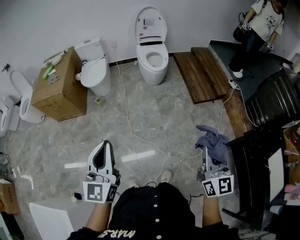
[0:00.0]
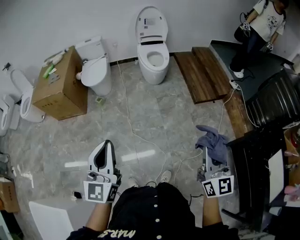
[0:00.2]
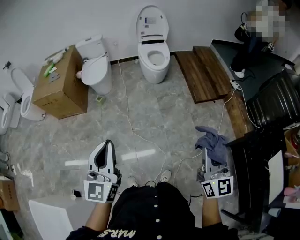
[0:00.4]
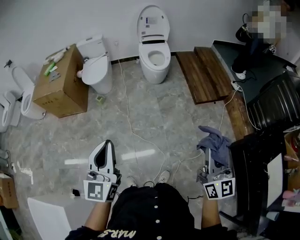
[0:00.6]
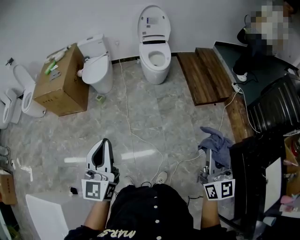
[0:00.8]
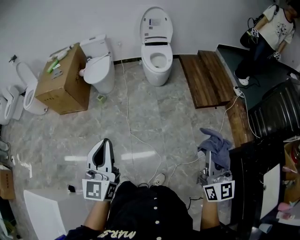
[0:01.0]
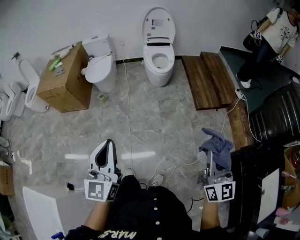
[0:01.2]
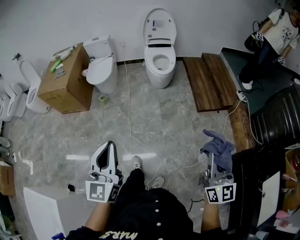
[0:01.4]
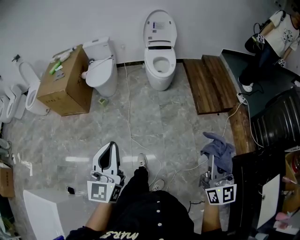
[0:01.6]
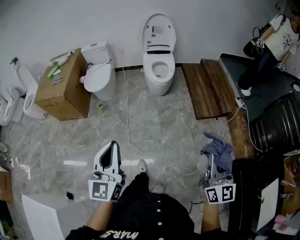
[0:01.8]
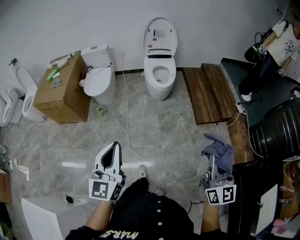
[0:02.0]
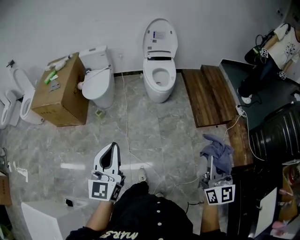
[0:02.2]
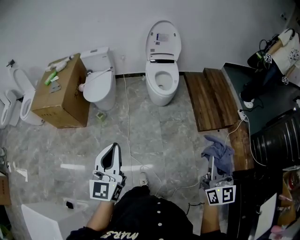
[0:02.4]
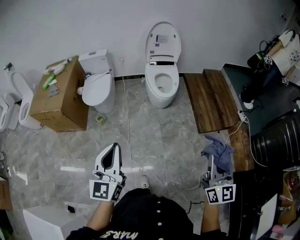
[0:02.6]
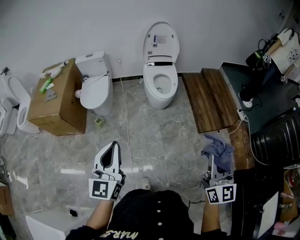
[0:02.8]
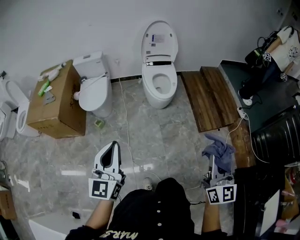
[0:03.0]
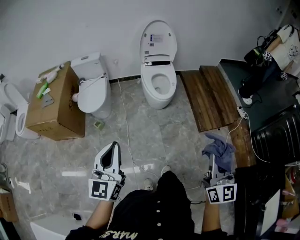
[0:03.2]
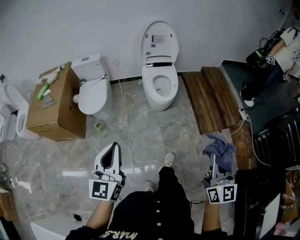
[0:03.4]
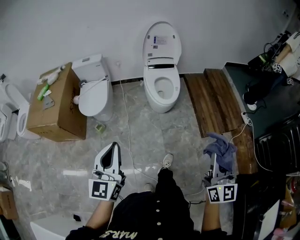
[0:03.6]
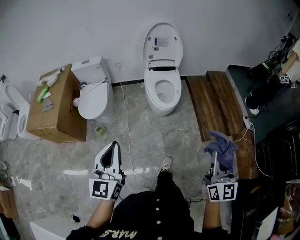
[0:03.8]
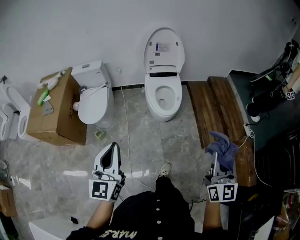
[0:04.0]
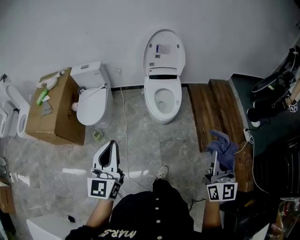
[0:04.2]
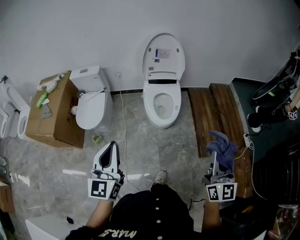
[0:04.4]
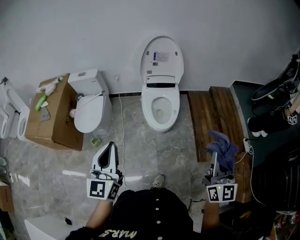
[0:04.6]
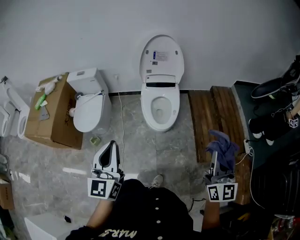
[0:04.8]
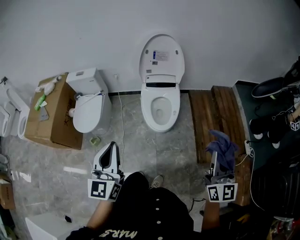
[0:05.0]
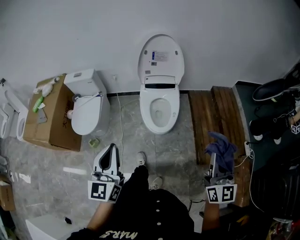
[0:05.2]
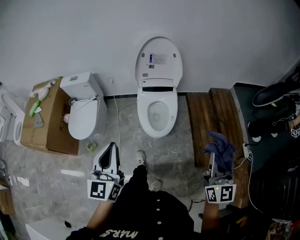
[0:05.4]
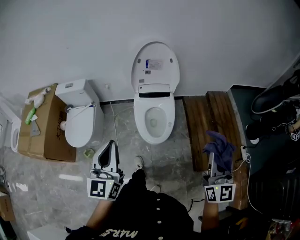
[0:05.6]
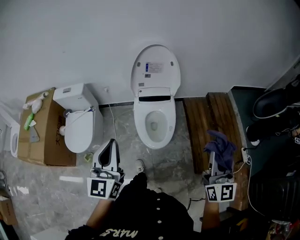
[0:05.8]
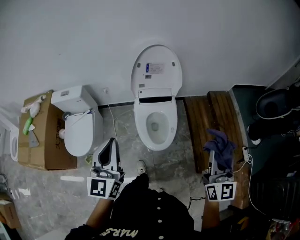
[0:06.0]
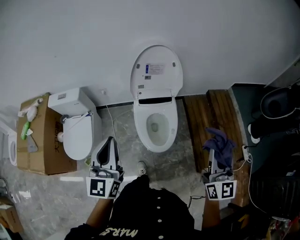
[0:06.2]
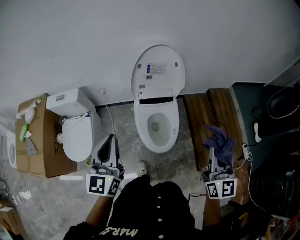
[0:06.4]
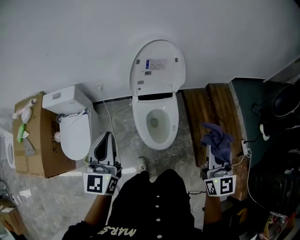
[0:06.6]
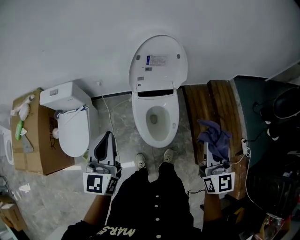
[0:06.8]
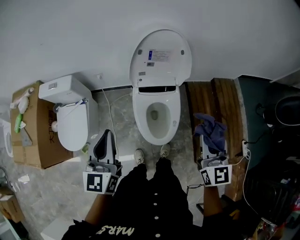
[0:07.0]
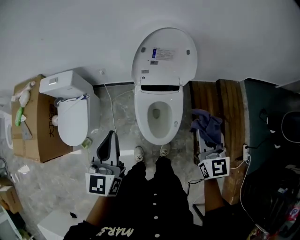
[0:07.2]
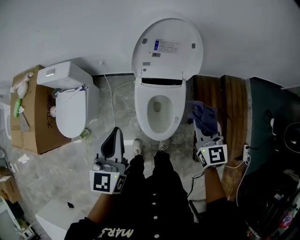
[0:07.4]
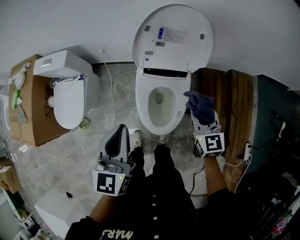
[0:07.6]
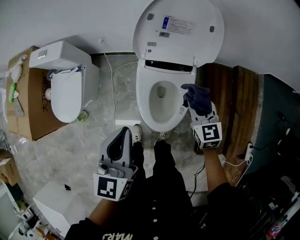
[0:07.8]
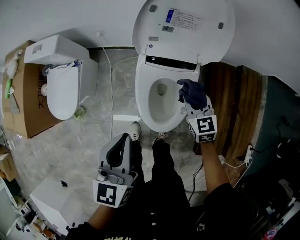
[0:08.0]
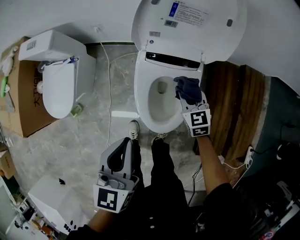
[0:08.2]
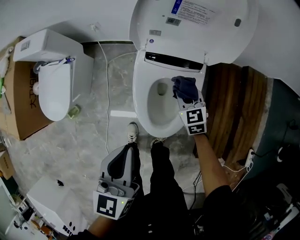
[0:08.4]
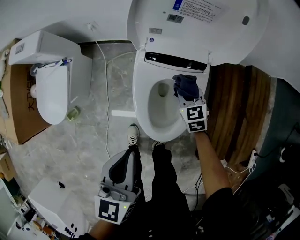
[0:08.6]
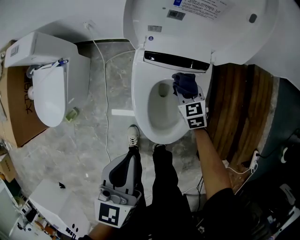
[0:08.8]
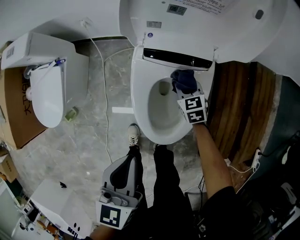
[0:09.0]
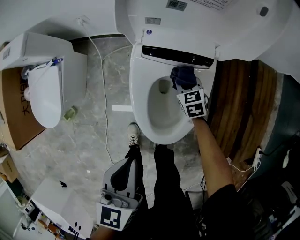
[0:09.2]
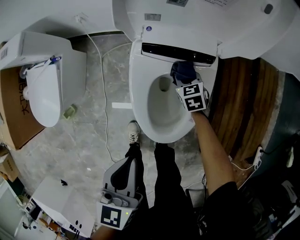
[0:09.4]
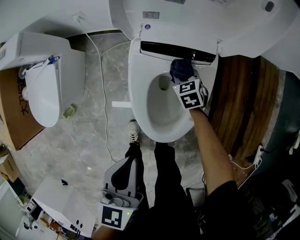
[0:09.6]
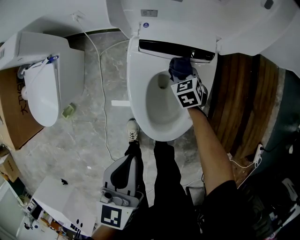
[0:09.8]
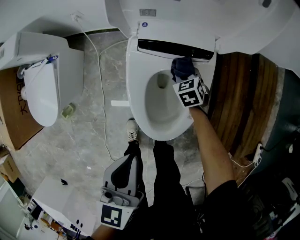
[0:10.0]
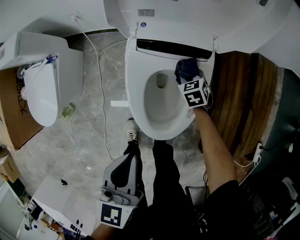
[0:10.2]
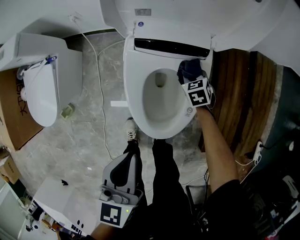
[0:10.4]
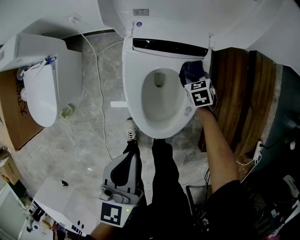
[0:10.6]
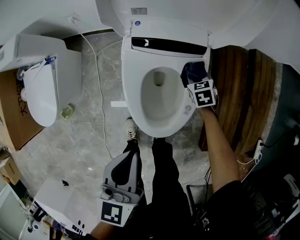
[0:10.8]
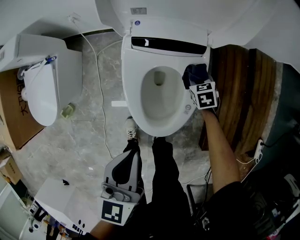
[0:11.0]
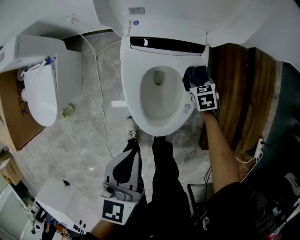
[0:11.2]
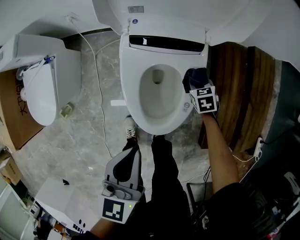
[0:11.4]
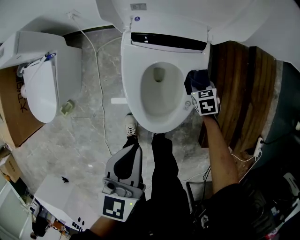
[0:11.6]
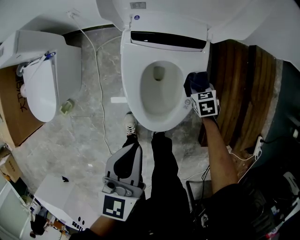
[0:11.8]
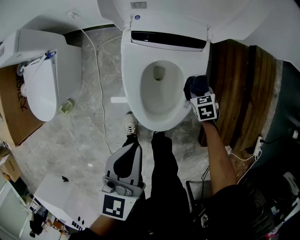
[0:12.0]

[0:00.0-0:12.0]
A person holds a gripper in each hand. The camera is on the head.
0:00.0 to 0:01.6: Both grippers travel together to the right and forward, approximately 10 cm.
0:01.6 to 0:03.0: The grippers both shift forward and to the left by approximately 25 cm.
0:03.0 to 0:04.4: The two grippers go about 30 cm forward.
0:04.4 to 0:06.0: Both grippers travel together forward, roughly 30 cm.
0:06.0 to 0:07.6: The right gripper heads forward and downward, covering roughly 40 cm, and swivels some 40 degrees, while the left gripper shifts about 20 cm forward and downward.
0:07.6 to 0:09.0: The right gripper is displaced downward by approximately 40 cm, and swivels about 30 degrees. The left gripper travels downward by roughly 20 cm.
0:09.0 to 0:10.4: The right gripper travels to the right and downward by roughly 10 cm.
0:10.4 to 0:12.0: The right gripper is displaced backward and to the right by approximately 10 cm.

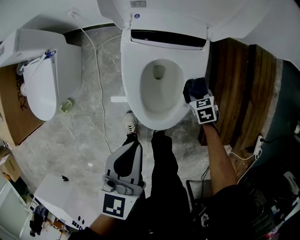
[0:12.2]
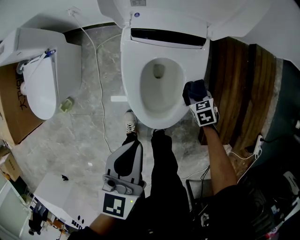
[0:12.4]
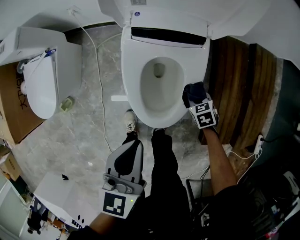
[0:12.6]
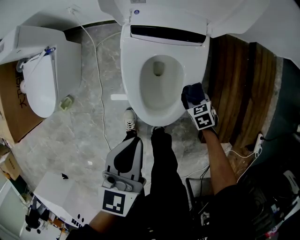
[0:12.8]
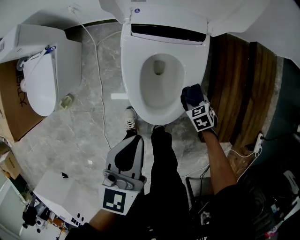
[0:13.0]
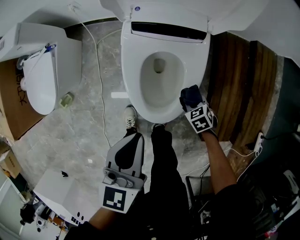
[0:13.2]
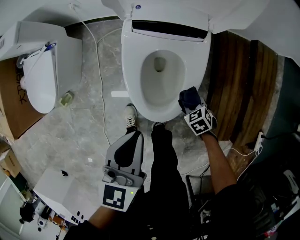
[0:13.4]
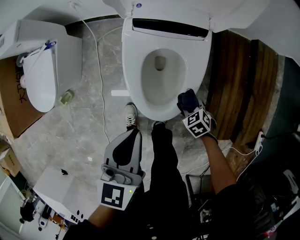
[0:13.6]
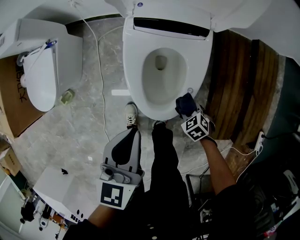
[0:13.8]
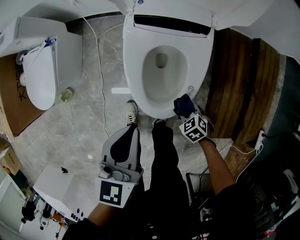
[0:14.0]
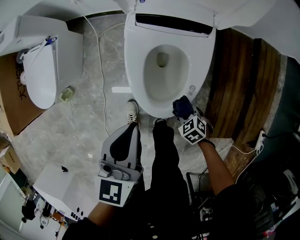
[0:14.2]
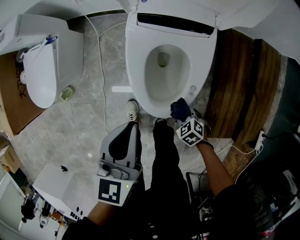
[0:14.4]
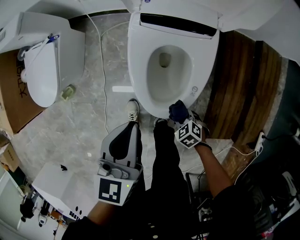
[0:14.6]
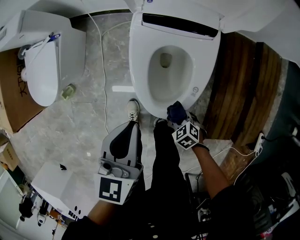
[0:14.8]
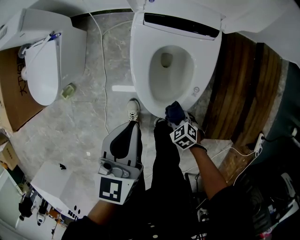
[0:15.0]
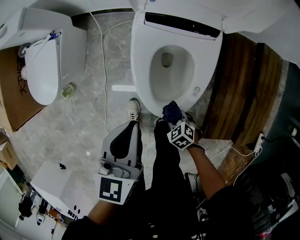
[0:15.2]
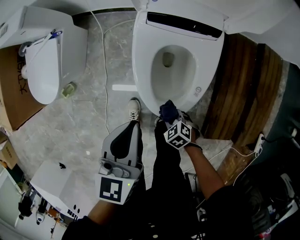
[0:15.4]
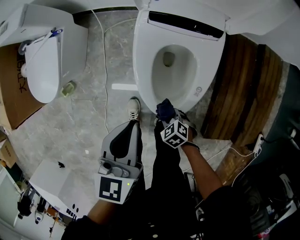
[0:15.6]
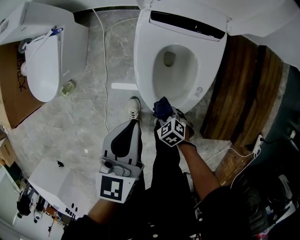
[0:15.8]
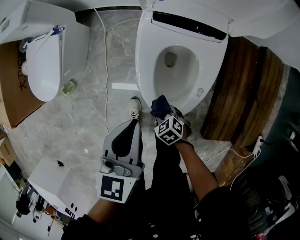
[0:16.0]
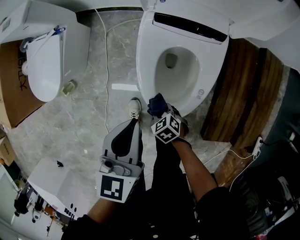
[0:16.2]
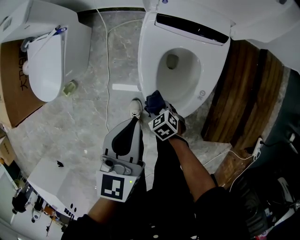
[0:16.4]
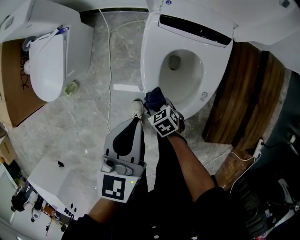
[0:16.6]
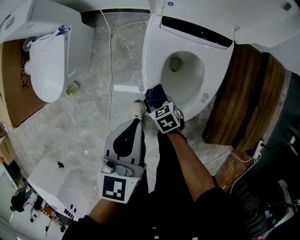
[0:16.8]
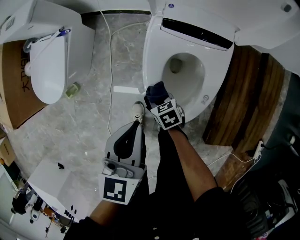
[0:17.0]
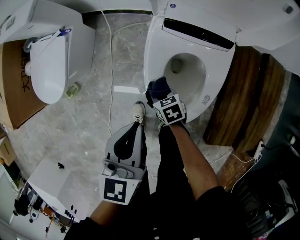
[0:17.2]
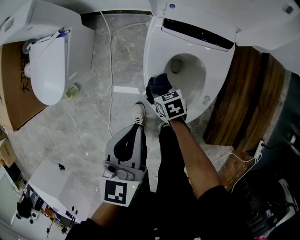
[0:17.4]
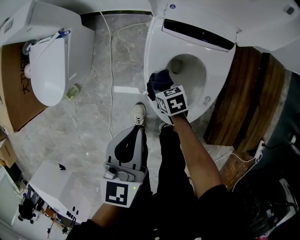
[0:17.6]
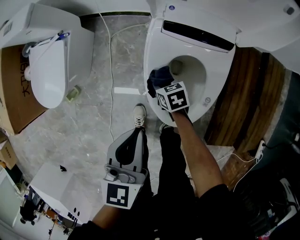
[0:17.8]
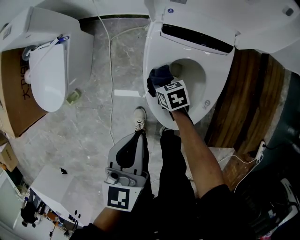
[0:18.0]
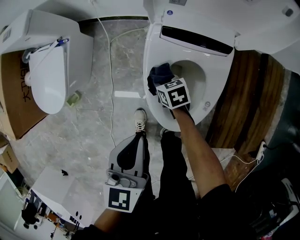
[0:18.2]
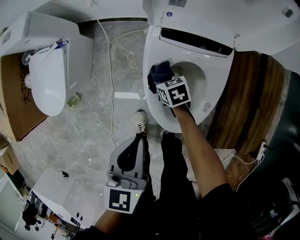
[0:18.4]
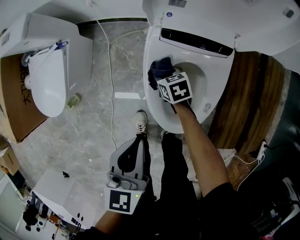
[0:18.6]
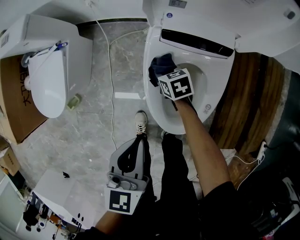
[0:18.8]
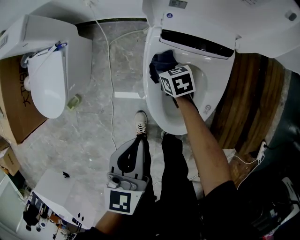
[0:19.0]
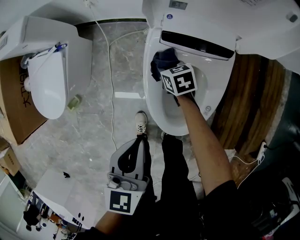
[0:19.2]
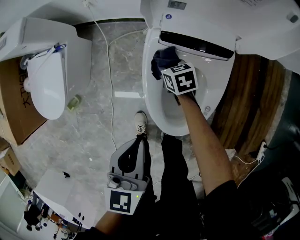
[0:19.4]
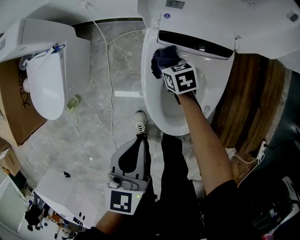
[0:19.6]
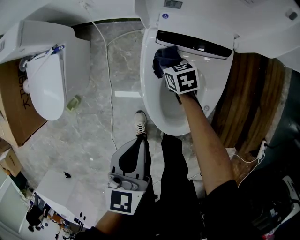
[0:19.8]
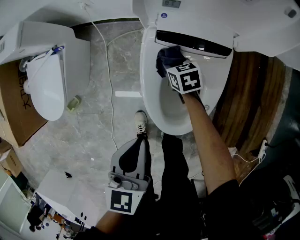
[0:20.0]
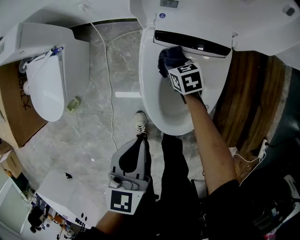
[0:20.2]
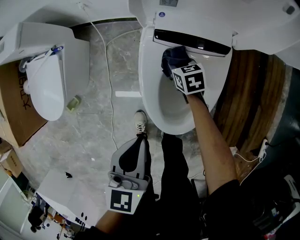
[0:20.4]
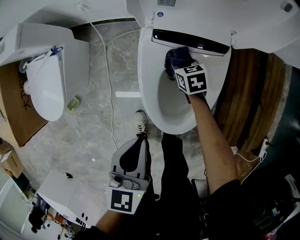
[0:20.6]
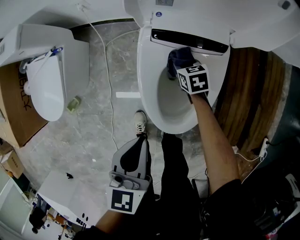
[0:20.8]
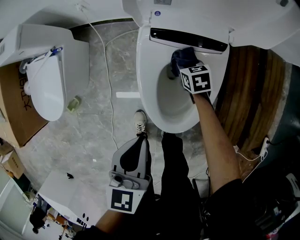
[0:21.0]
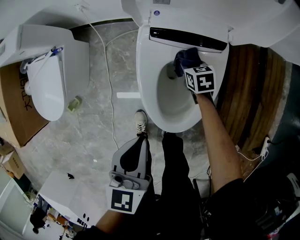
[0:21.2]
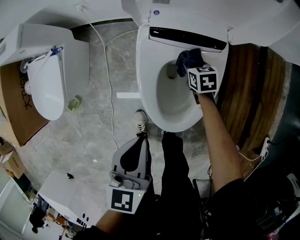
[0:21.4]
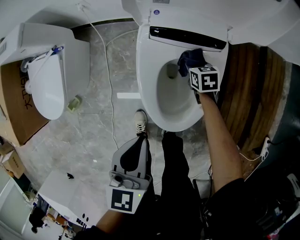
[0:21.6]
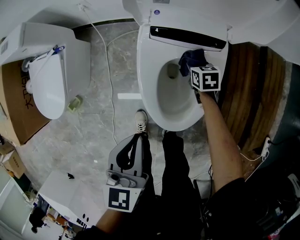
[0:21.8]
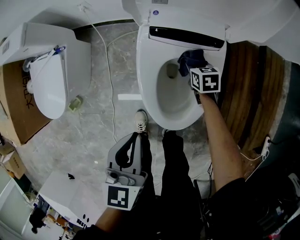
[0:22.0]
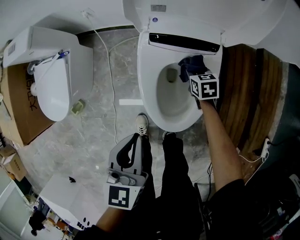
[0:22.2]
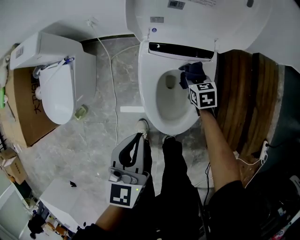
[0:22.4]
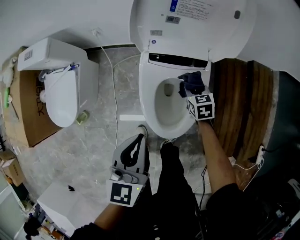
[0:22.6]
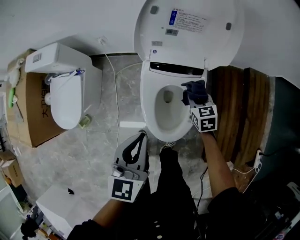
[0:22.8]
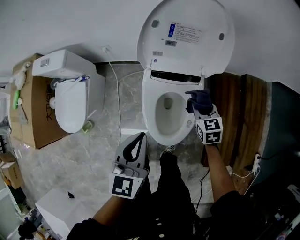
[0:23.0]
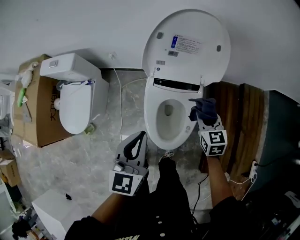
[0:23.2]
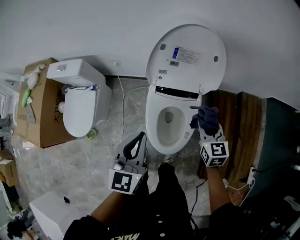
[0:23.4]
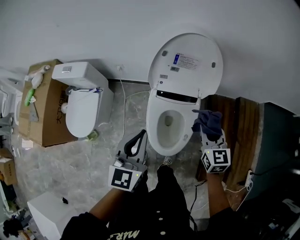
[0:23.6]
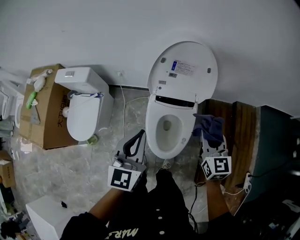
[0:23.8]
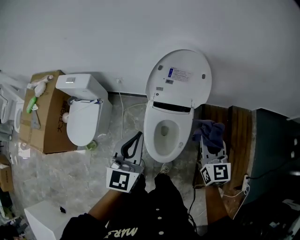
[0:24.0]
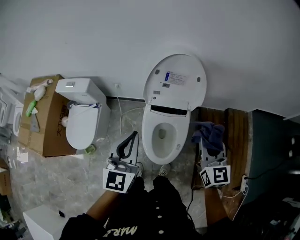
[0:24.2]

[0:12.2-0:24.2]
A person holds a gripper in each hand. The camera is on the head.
0:12.2 to 0:13.8: The right gripper is displaced backward and to the left by some 15 cm, and rotates roughly 20 degrees.
0:13.8 to 0:15.2: The right gripper heads to the left, covering some 10 cm.
0:15.2 to 0:16.6: The right gripper shifts roughly 15 cm forward and to the left.
0:16.6 to 0:18.2: The right gripper travels forward and to the right by roughly 15 cm.
0:18.2 to 0:19.8: The right gripper moves forward and to the right, roughly 10 cm.
0:19.8 to 0:21.2: The right gripper goes roughly 10 cm to the right.
0:21.2 to 0:22.6: Both grippers move upward, roughly 10 cm.
0:22.6 to 0:24.2: The right gripper heads upward, covering about 50 cm, and angles its fingers upward, by some 40 degrees. The left gripper moves upward, about 25 cm, and swivels about 20 degrees.
